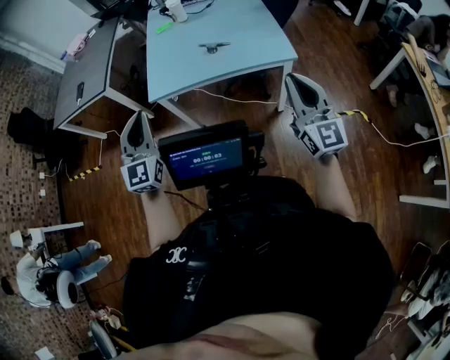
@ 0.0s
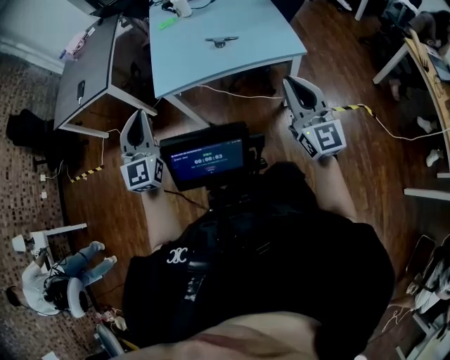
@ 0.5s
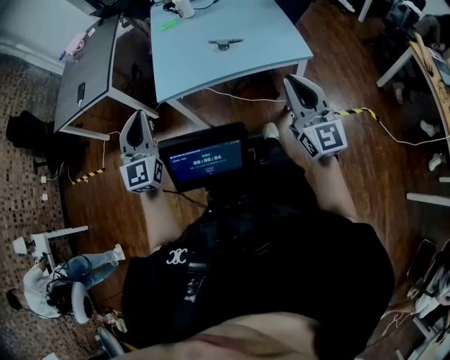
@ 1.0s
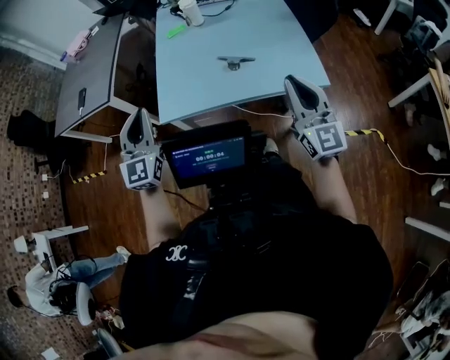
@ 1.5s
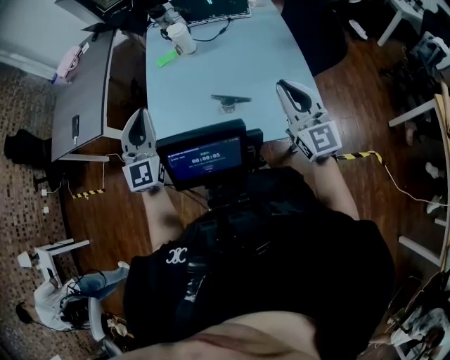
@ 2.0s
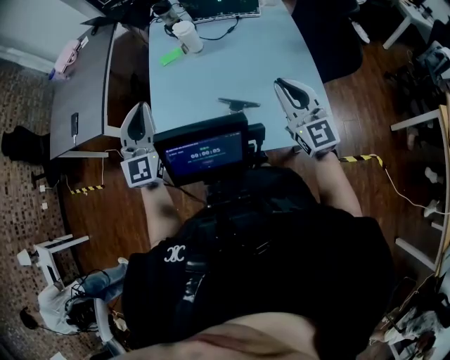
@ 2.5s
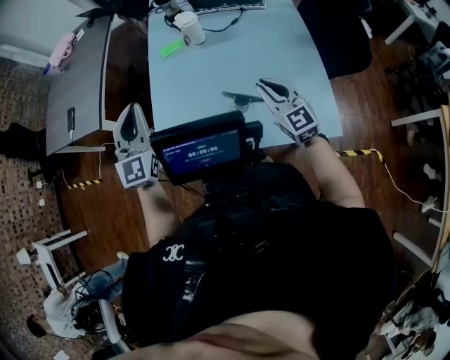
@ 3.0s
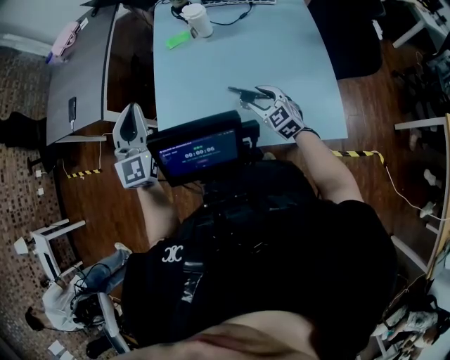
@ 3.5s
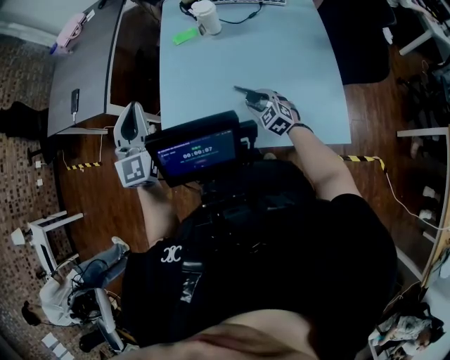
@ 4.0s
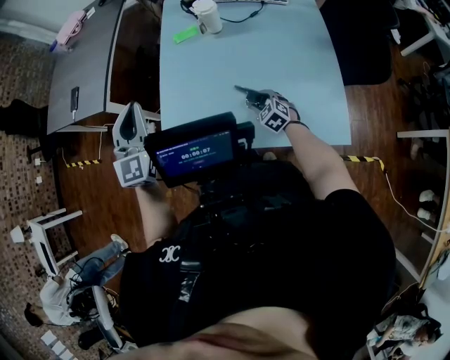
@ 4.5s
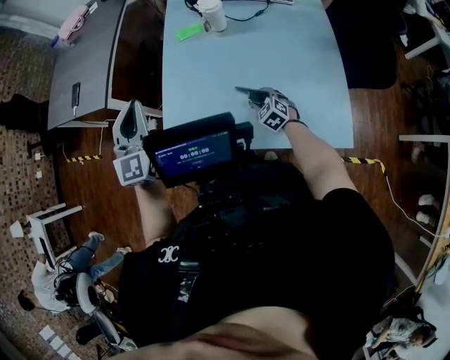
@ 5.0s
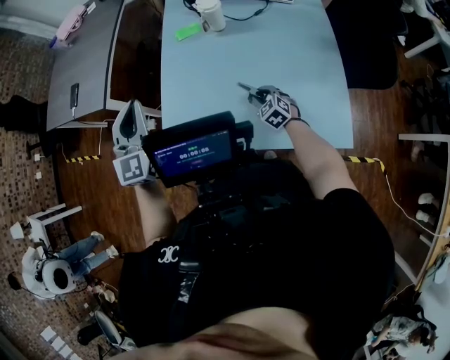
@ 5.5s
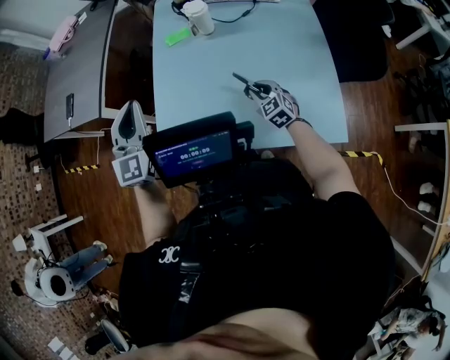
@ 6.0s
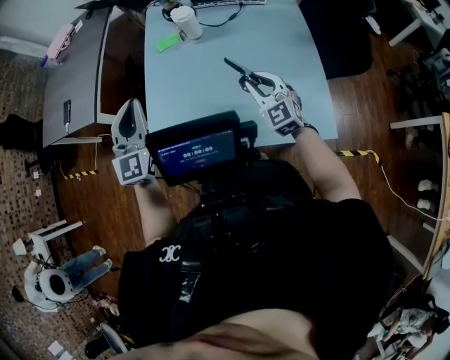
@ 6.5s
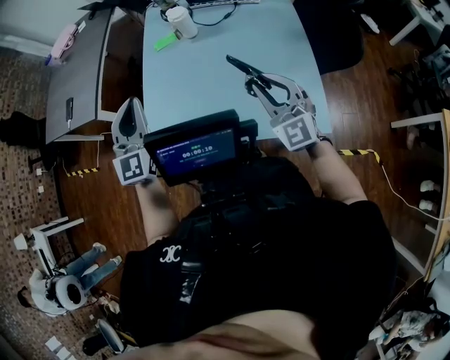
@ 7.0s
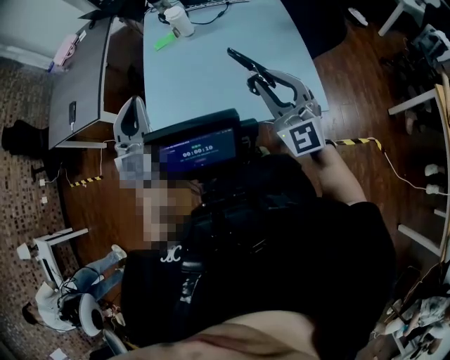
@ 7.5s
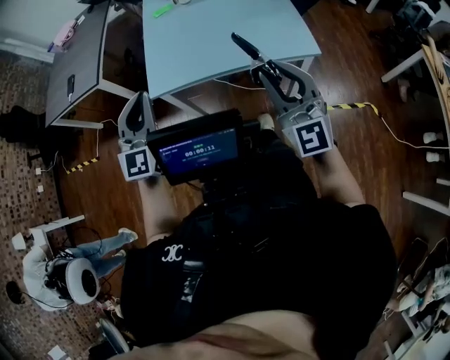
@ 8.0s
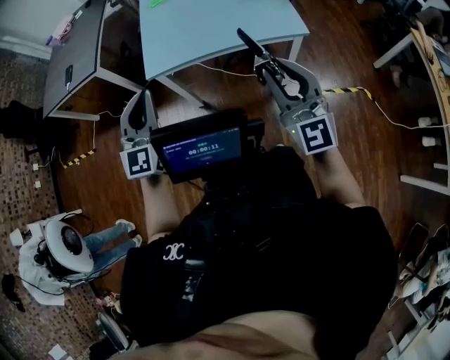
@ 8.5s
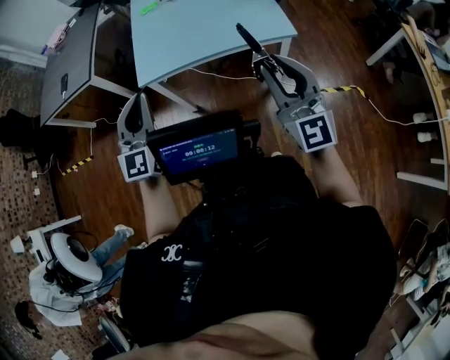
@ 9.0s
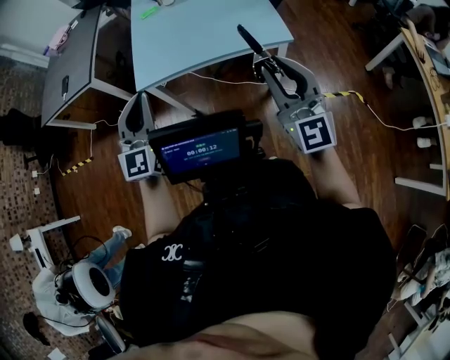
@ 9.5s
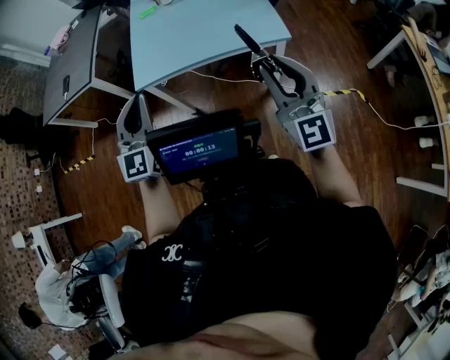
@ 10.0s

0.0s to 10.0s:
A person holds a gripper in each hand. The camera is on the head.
0.0s to 2.0s: Both grippers move forward, roughly 35 cm.
2.0s to 4.0s: The left gripper travels forward and to the left by some 15 cm; the right gripper shifts some 40 cm downward, forward and to the left, tips its fingers downward by roughly 50 degrees, and opens up.
4.0s to 6.0s: The right gripper moves about 5 cm, and closes up.
6.0s to 8.0s: The left gripper is displaced backward by some 30 cm; the right gripper shifts some 50 cm backward and upward, and tilts its fingers roughly 50 degrees upward.
8.0s to 10.0s: The grippers both shift backward and to the right by some 15 cm.

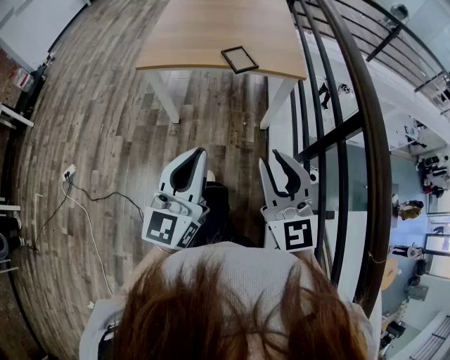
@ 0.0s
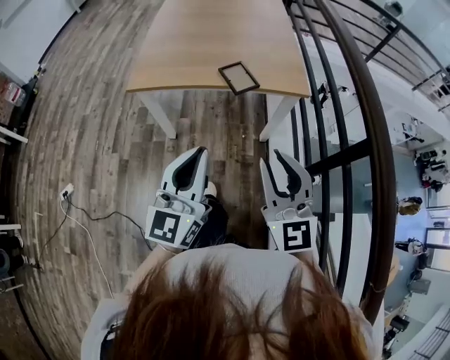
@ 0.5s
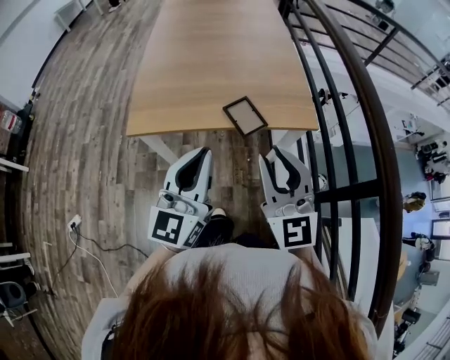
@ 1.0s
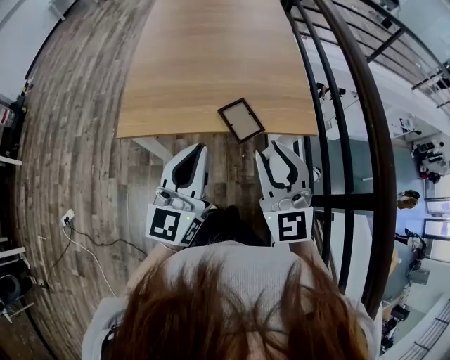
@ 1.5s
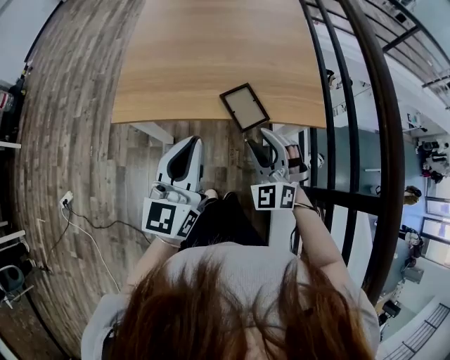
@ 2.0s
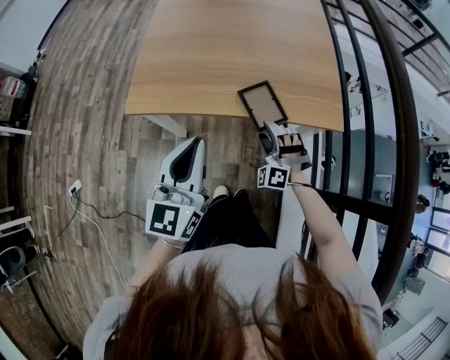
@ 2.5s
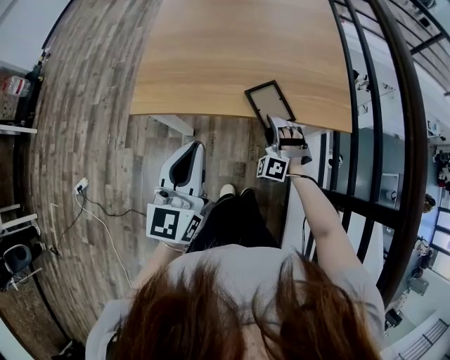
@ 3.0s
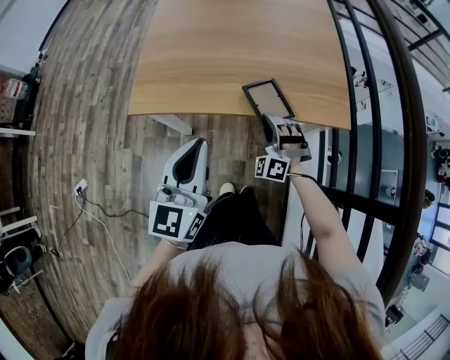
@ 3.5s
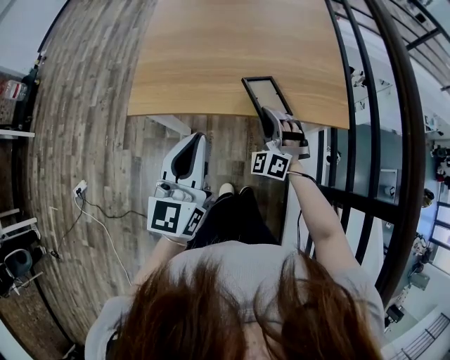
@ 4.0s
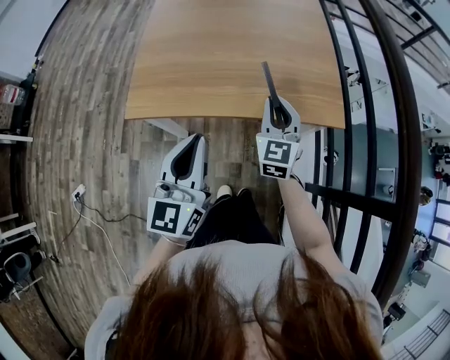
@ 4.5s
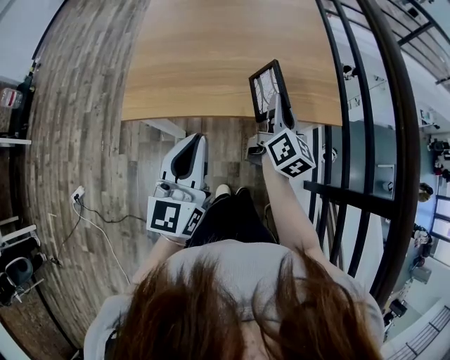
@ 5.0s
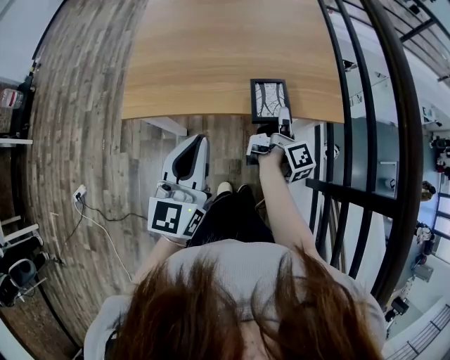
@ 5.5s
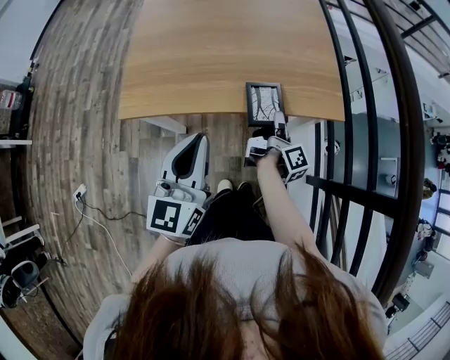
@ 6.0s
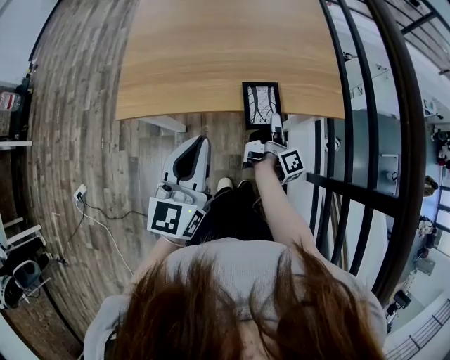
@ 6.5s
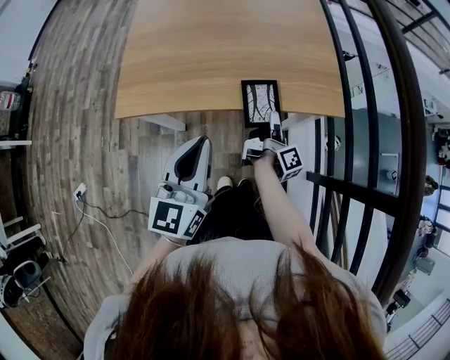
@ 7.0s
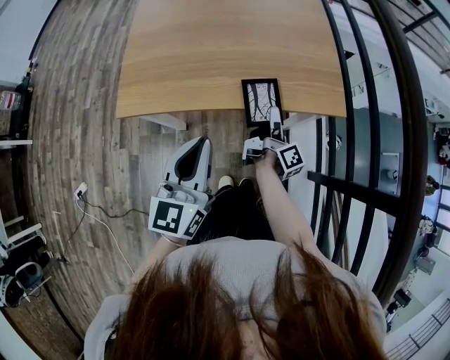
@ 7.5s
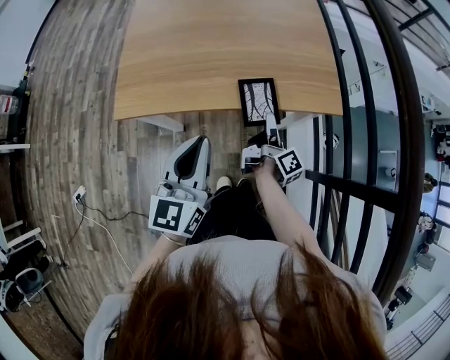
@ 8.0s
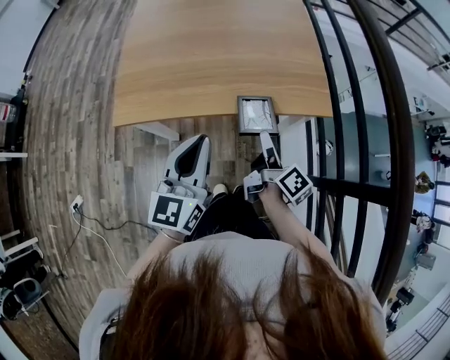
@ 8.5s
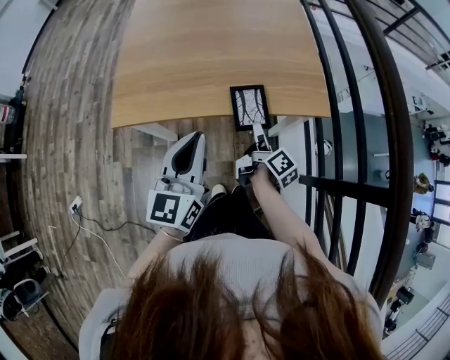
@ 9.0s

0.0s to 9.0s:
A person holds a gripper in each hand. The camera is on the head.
0.0s to 2.0s: Both grippers move forward, approximately 40 cm. The right gripper changes its angle by about 50 degrees.
2.0s to 4.5s: The right gripper shifts about 10 cm forward, reaches roughly 15 cm downward, then returns, twists roughly 40 degrees clockwise, seen from behind, and closes up.
4.5s to 7.0s: The right gripper goes approximately 15 cm downward and to the right, and rolls clockwise, seen from behind, by about 110 degrees.
7.0s to 9.0s: The right gripper travels upward and back again, roughly 10 cm each way, rotates approximately 20 degrees, and opens its fingers.

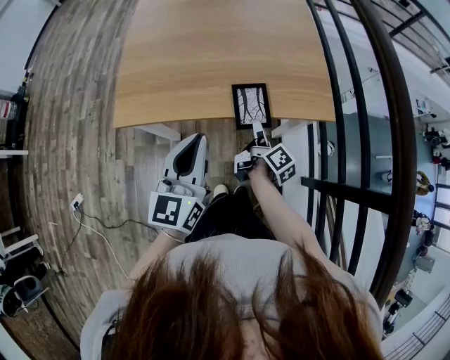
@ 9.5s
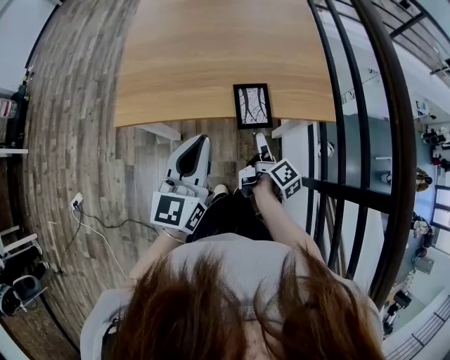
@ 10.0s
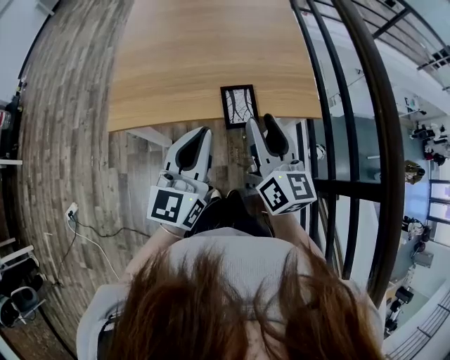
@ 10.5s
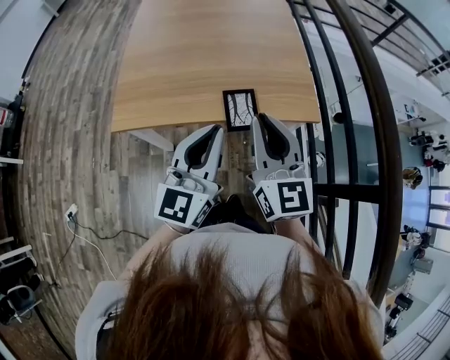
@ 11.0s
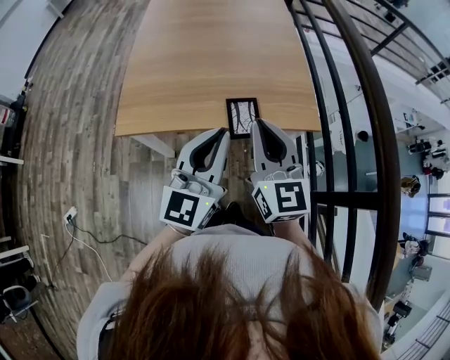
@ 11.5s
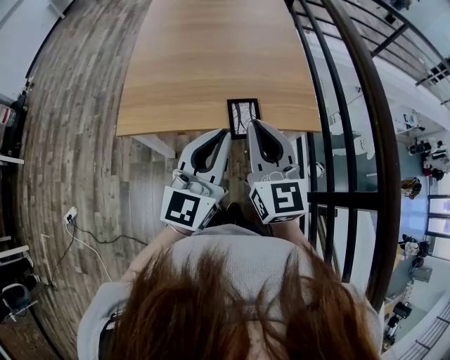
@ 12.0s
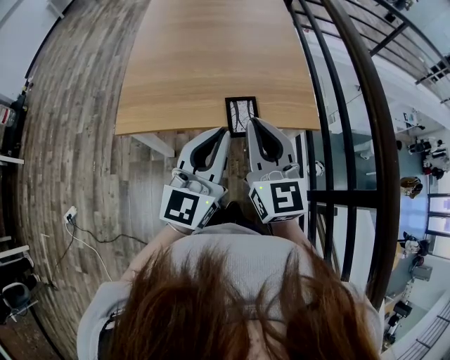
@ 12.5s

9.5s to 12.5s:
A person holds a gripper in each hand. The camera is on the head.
9.5s to 11.0s: The right gripper travels upward by approximately 30 cm, rolls counterclockwise, seen from behind, by about 80 degrees, and closes, while the left gripper goes some 10 cm upward and to the right.
11.0s to 12.5s: There are only small adjustments of the grippers.

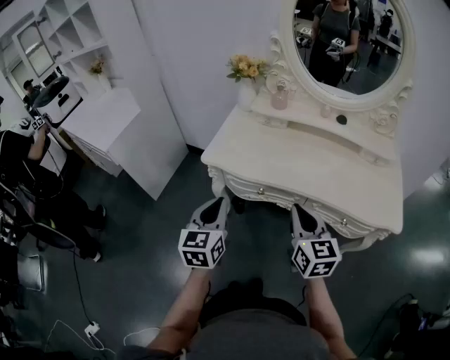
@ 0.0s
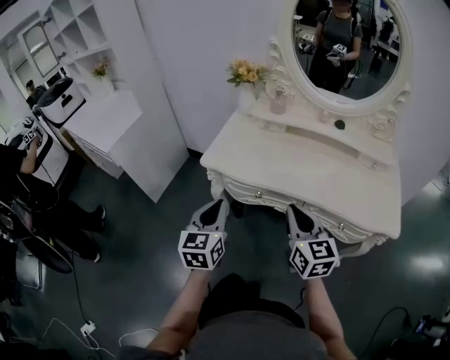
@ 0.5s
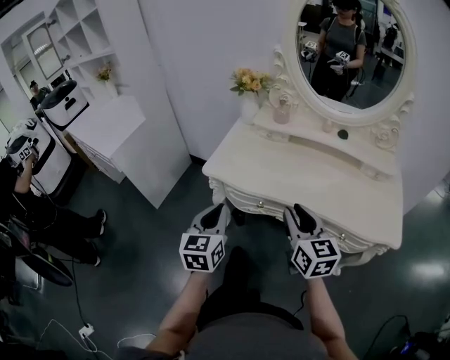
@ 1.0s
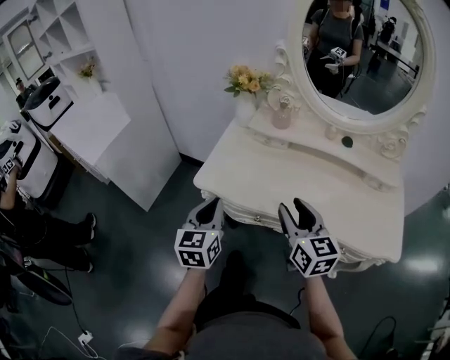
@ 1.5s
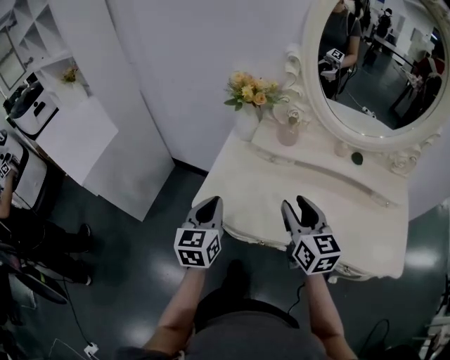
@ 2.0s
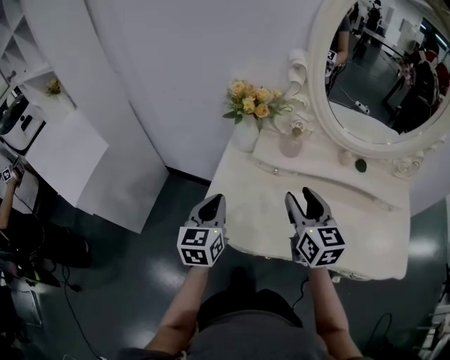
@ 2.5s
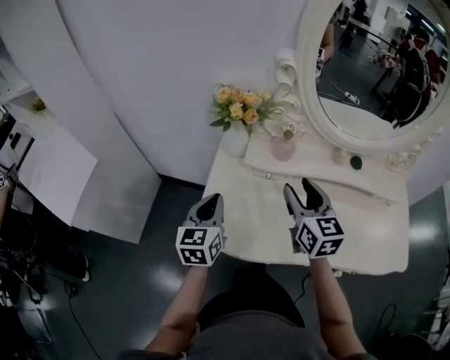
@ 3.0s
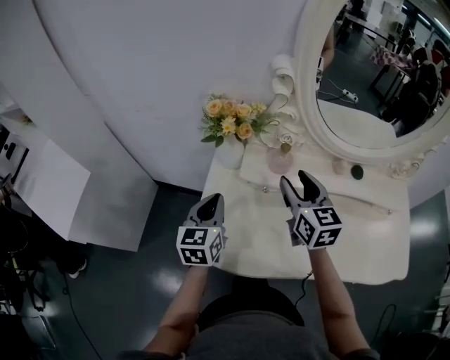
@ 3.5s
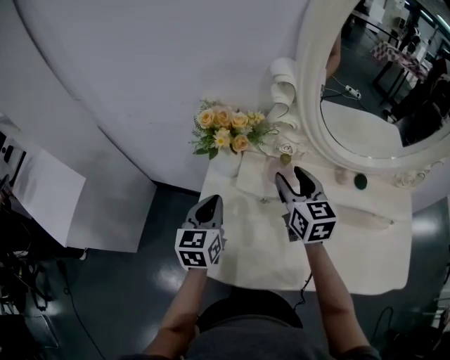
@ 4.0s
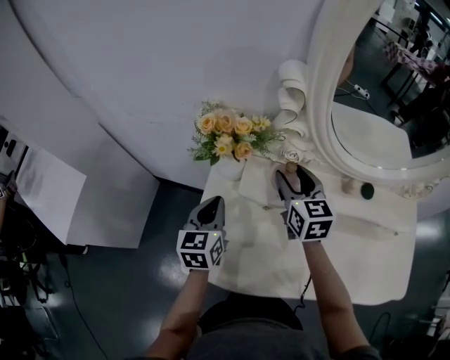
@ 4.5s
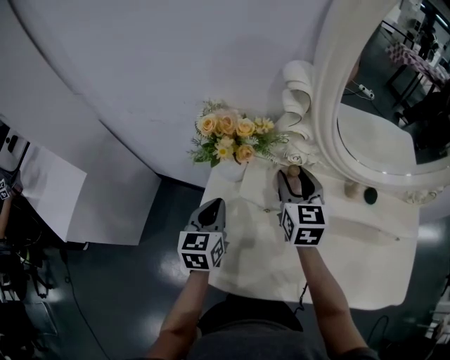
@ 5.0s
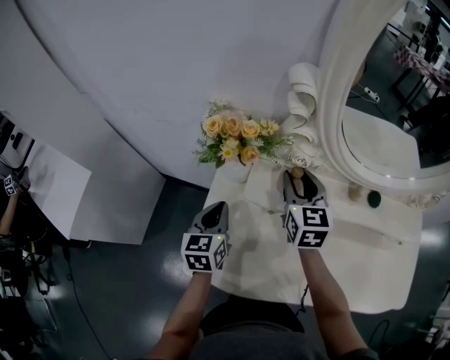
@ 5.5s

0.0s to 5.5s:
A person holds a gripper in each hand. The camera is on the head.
0.0s to 2.0s: The two grippers go some 25 cm forward. The right gripper opens.
2.0s to 3.5s: The grippers both shift forward by approximately 20 cm.
3.5s to 5.5s: The right gripper goes roughly 10 cm forward, while the left gripper travels forward by approximately 5 cm.
